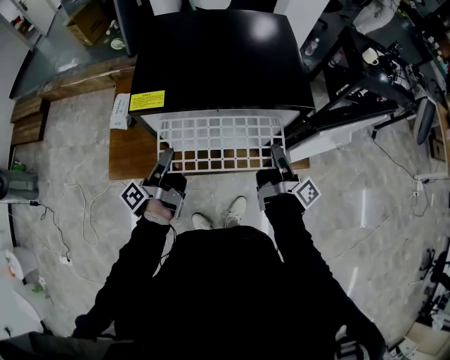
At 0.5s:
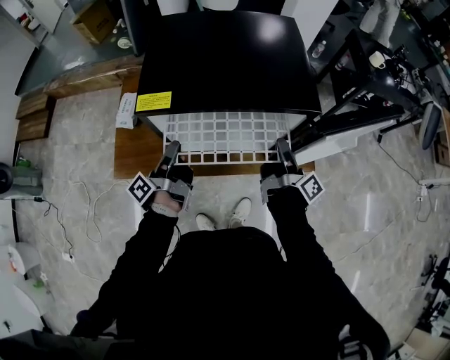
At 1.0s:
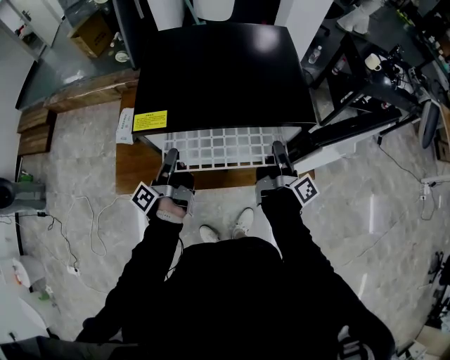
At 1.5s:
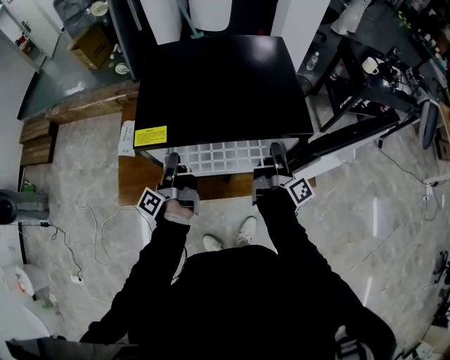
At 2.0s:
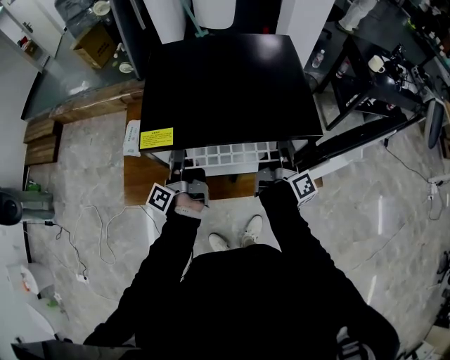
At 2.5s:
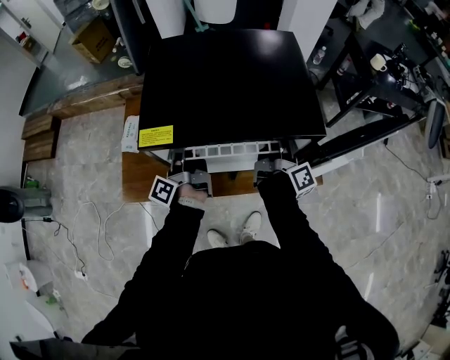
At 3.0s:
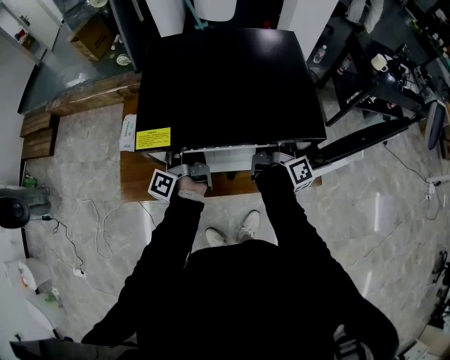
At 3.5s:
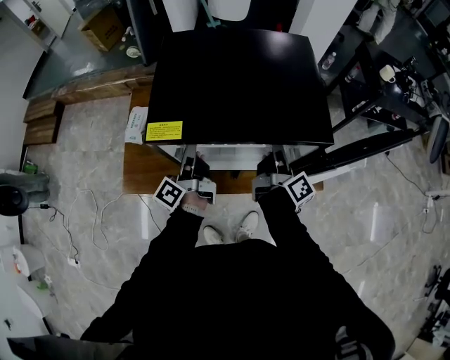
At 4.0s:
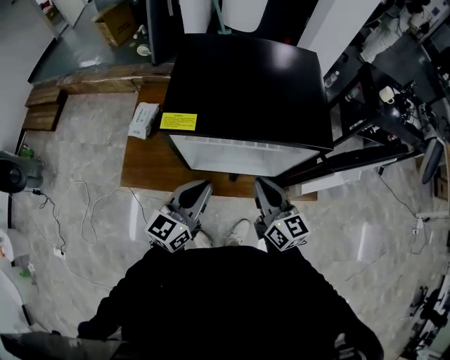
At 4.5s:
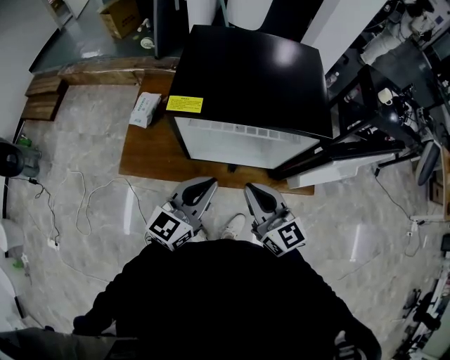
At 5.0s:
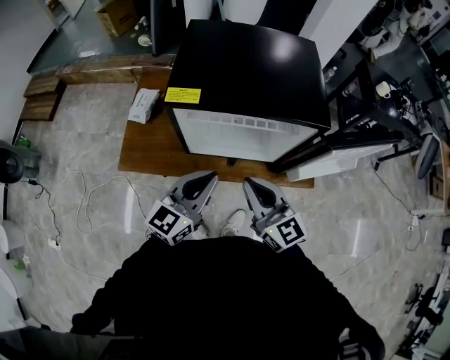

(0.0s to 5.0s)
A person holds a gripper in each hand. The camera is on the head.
0.0s - 2.5s: Both grippers travel together forward, roughly 10 cm. The left gripper turns by about 20 degrees.
2.5s - 5.0s: The left gripper is displaced backward, to the right and upward by roughly 25 cm, and twists approximately 70 degrees clockwise, seen from behind. Meanwhile the right gripper moves backward, to the left and upward, some 30 cm, swivels about 90 degrees, and opens, then closes again.

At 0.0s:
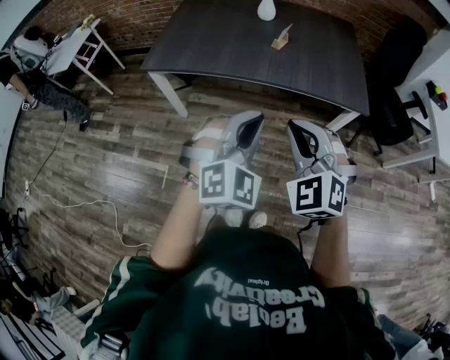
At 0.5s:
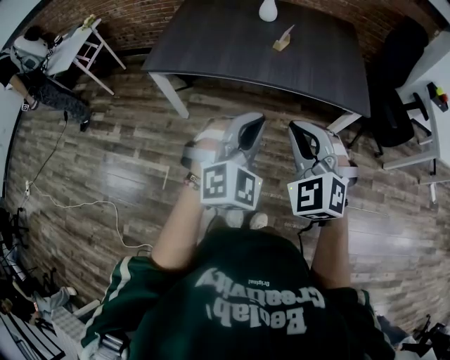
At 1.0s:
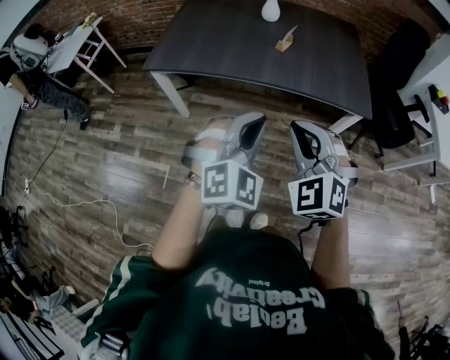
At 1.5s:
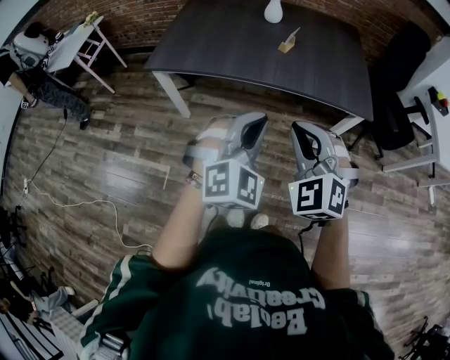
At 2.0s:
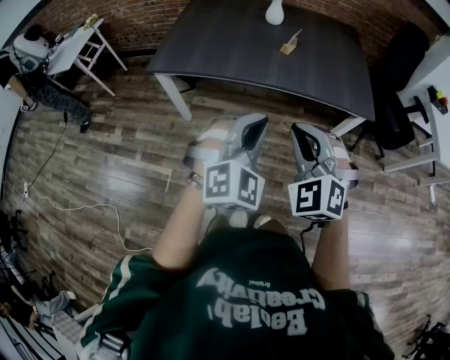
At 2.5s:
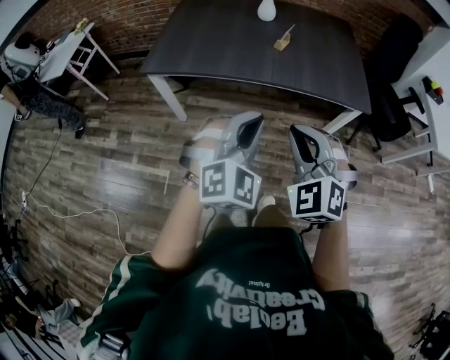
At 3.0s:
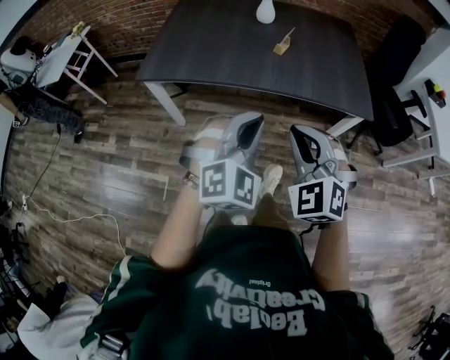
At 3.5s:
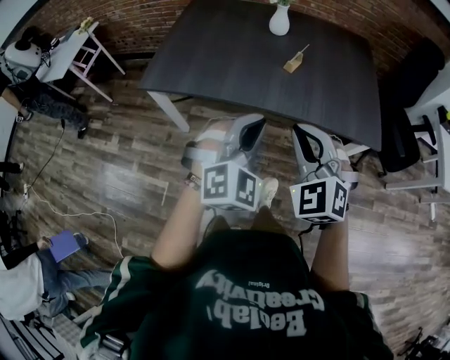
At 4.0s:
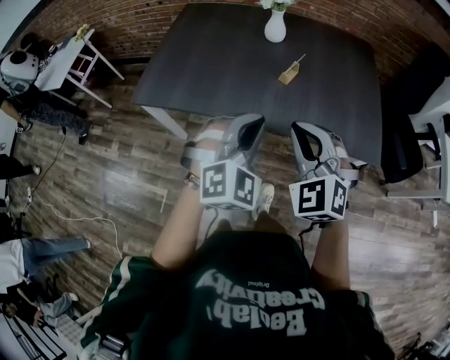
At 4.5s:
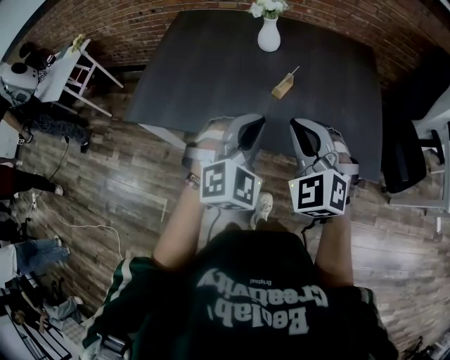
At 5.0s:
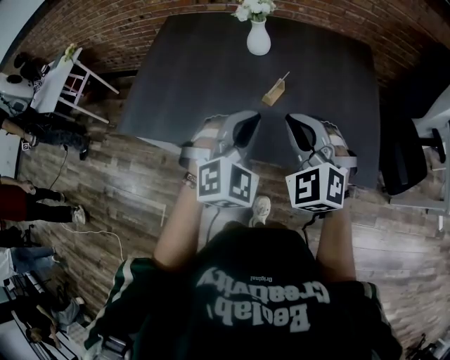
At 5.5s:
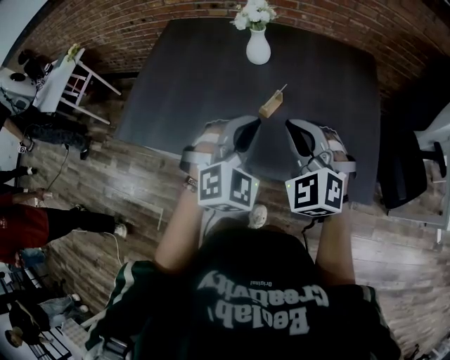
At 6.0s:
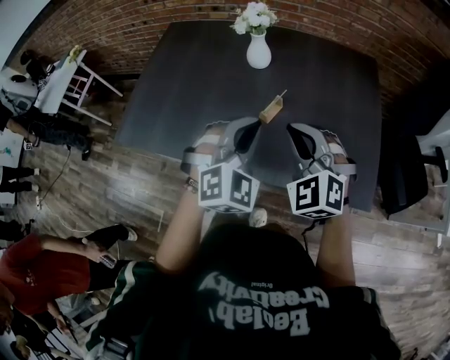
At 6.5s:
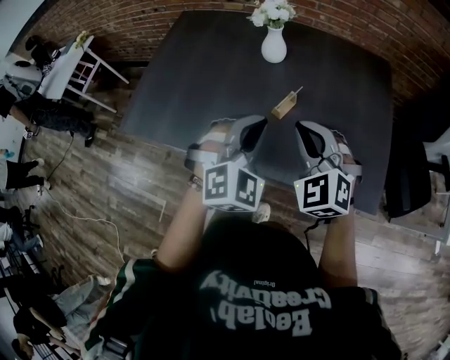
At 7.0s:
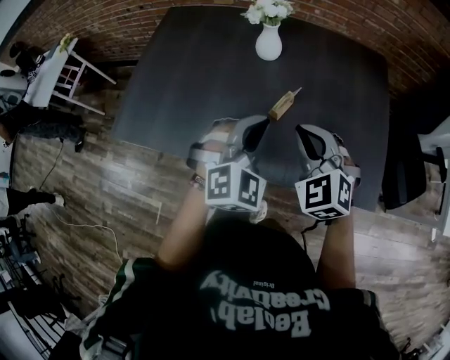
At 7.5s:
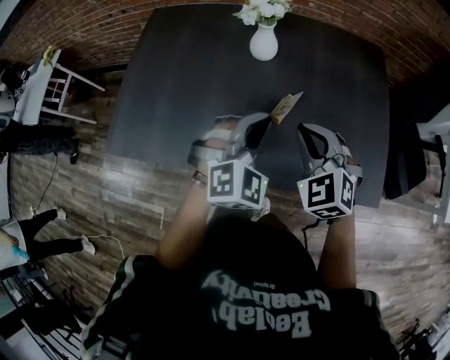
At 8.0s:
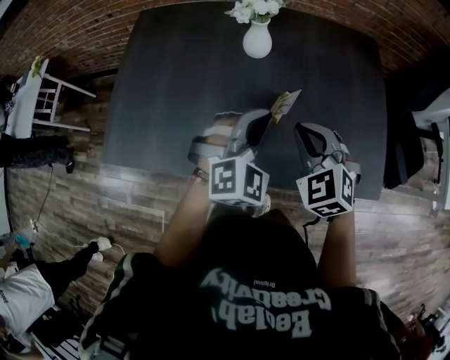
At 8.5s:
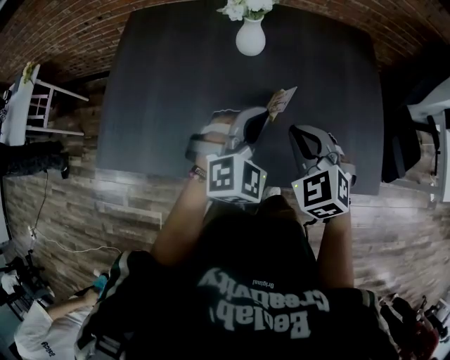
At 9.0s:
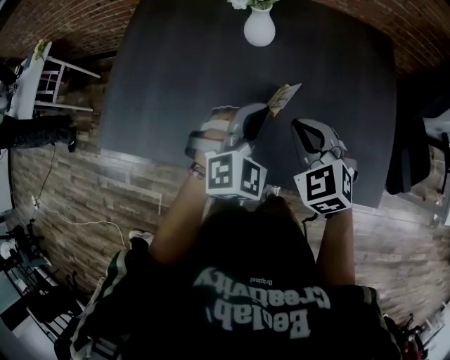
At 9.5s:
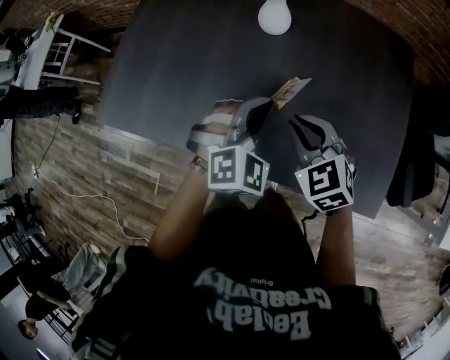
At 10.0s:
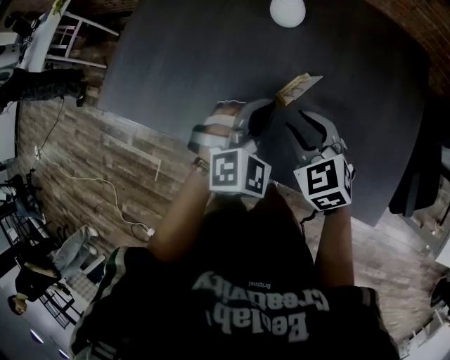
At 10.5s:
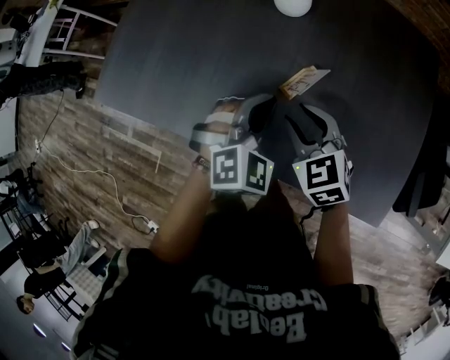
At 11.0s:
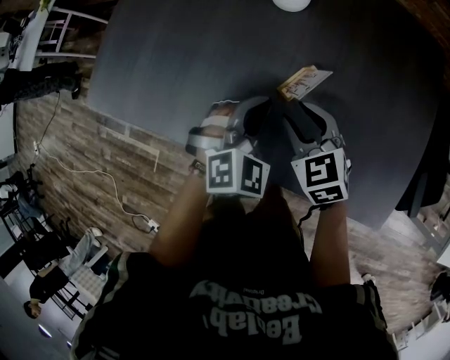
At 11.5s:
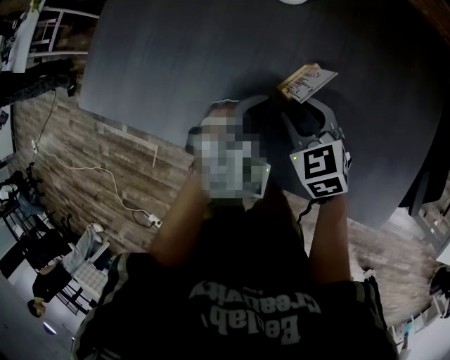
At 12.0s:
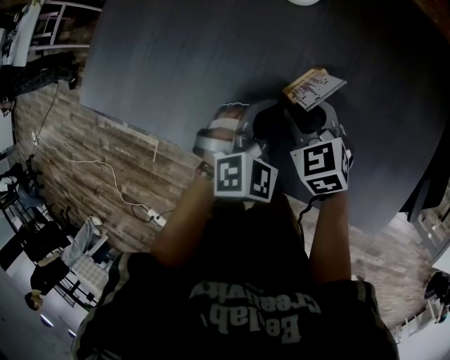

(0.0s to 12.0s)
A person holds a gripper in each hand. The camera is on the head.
0.0s - 2.0s: The grippers stay close to where they were, moving slightly.
2.0s - 4.0s: Both grippers travel together forward, some 25 cm.
4.0s - 6.0s: Both grippers travel together forward and to the right, approximately 25 cm.
6.0s - 8.0s: The two grippers go roughly 10 cm forward, downward and to the left. The right gripper changes its angle by approximately 20 degrees.
8.0s - 10.0s: The two grippers go some 10 cm downward. The right gripper swivels roughly 20 degrees, and opens its fingers.
10.0s - 12.0s: The left gripper is displaced downward by some 10 cm, while the right gripper goes approximately 15 cm downward and forward.

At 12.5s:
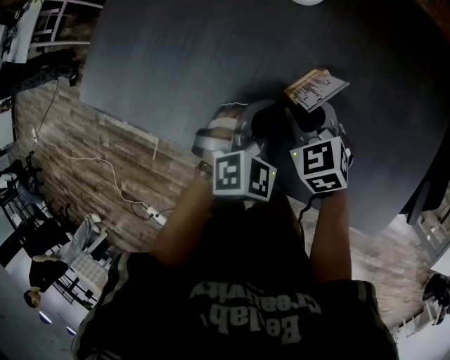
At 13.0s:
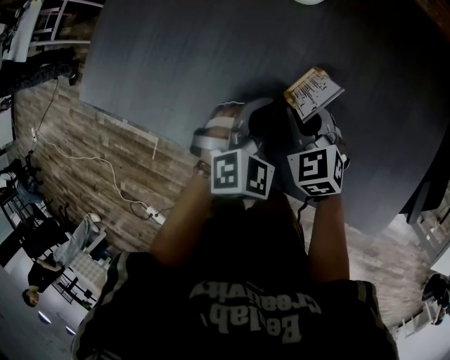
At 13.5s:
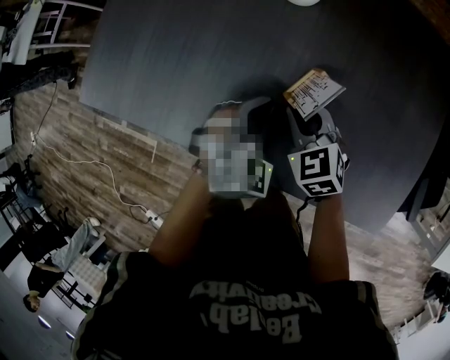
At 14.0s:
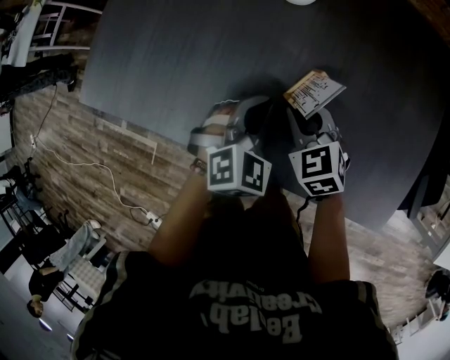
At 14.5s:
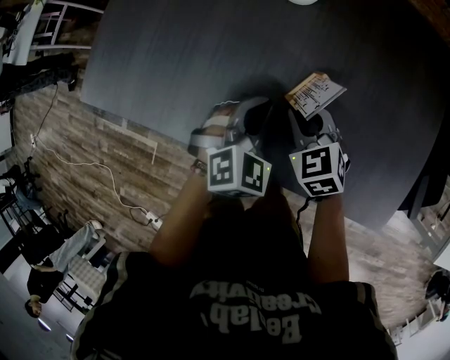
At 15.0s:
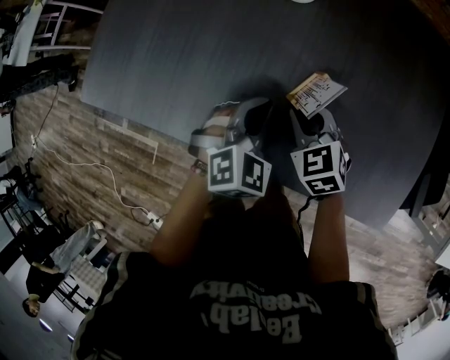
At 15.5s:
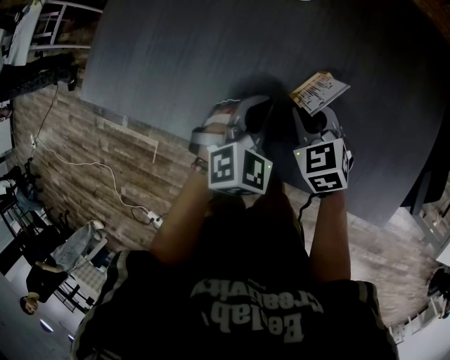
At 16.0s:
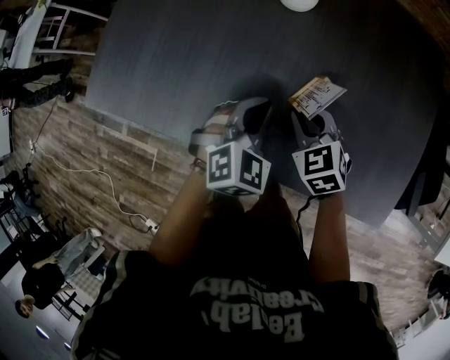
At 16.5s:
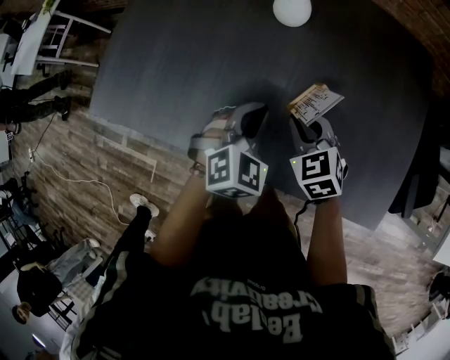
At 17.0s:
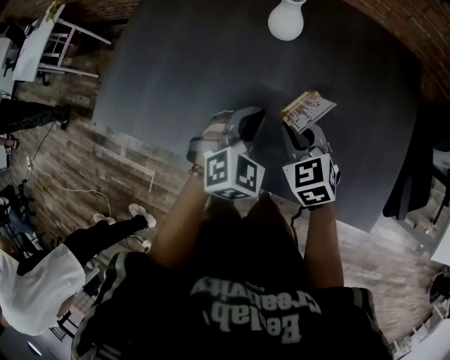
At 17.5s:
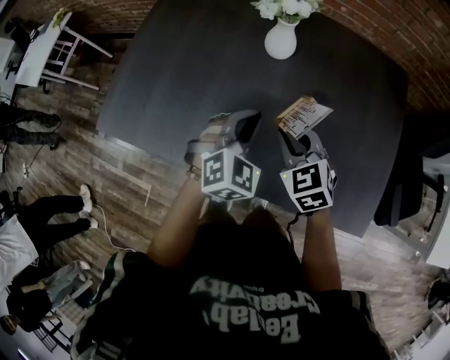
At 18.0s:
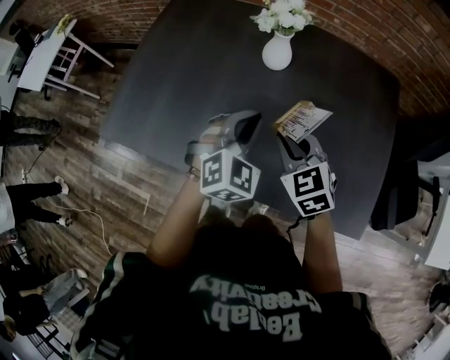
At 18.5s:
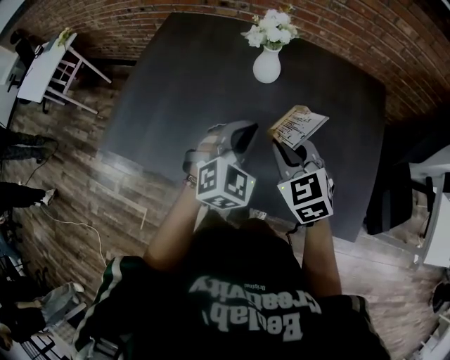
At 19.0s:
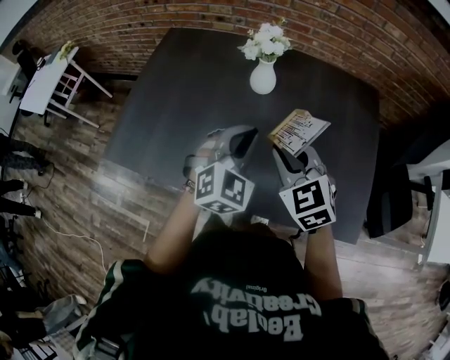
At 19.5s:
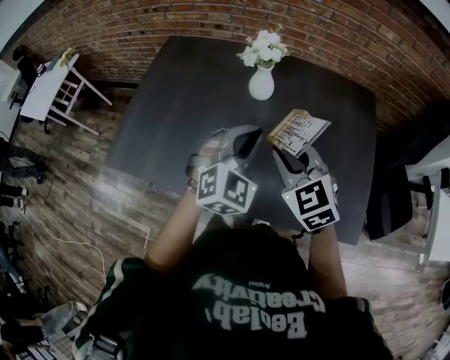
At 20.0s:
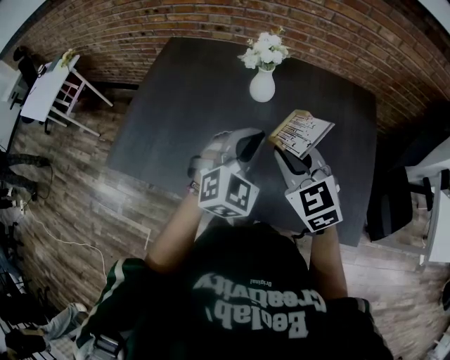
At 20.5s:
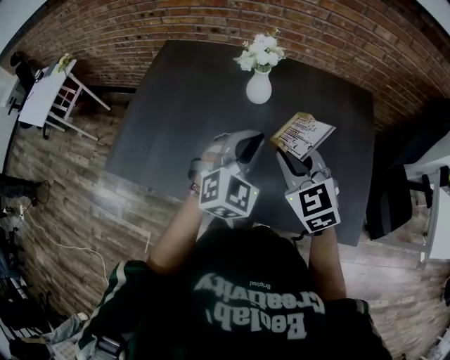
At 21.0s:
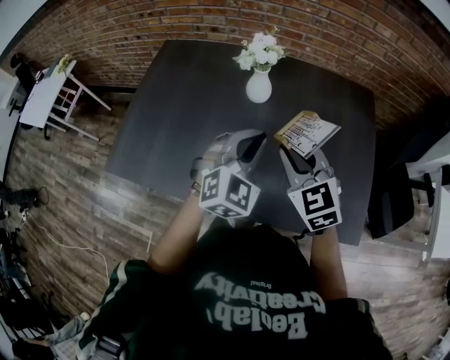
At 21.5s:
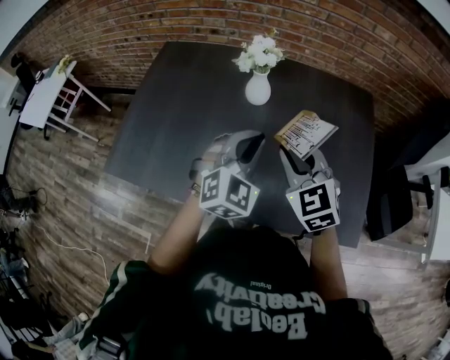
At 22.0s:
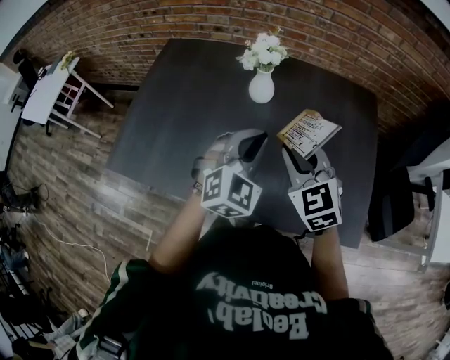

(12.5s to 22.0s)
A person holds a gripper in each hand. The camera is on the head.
12.5s - 14.5s: The grippers move only a little.
14.5s - 16.5s: The left gripper moves approximately 5 cm.
16.5s - 18.0s: Both grippers move upward, roughly 15 cm.
18.0s - 20.0s: The grippers both shift upward by roughly 10 cm.
20.0s - 22.0s: There are only small adjustments of the grippers.
